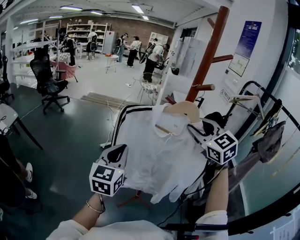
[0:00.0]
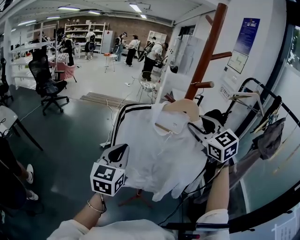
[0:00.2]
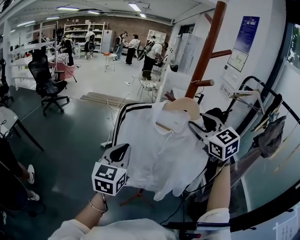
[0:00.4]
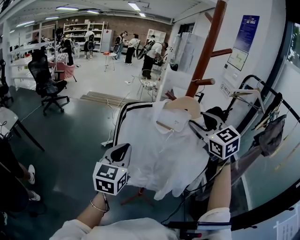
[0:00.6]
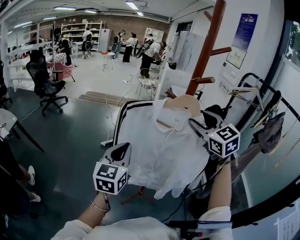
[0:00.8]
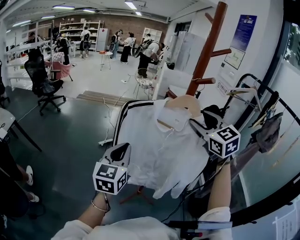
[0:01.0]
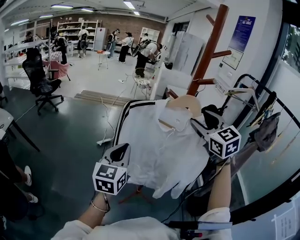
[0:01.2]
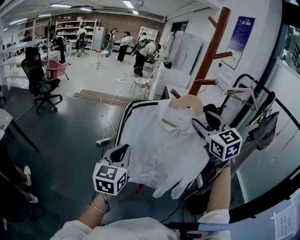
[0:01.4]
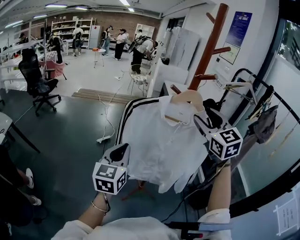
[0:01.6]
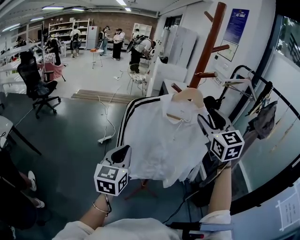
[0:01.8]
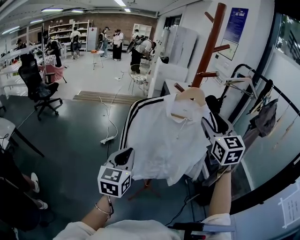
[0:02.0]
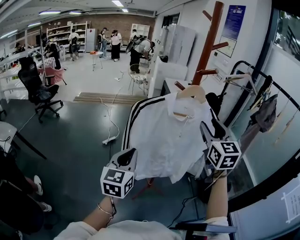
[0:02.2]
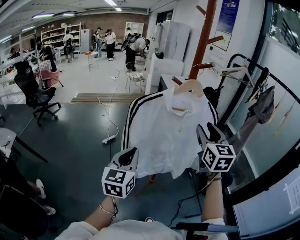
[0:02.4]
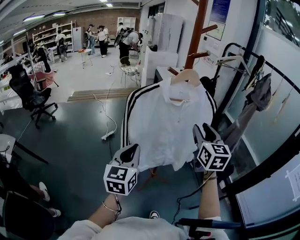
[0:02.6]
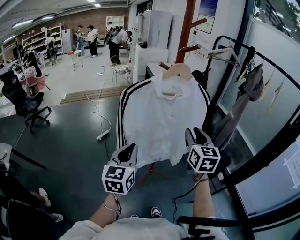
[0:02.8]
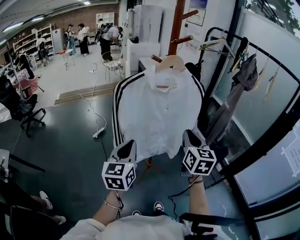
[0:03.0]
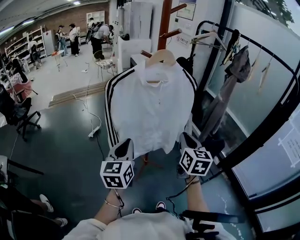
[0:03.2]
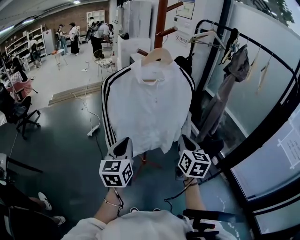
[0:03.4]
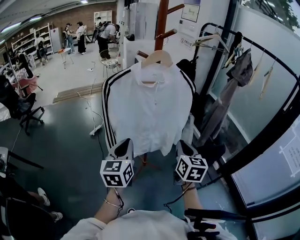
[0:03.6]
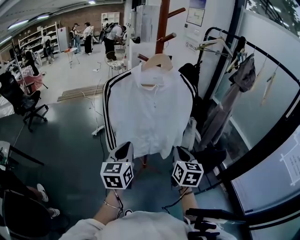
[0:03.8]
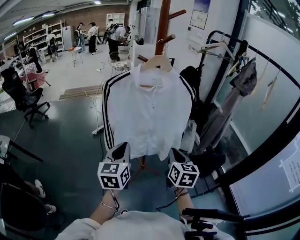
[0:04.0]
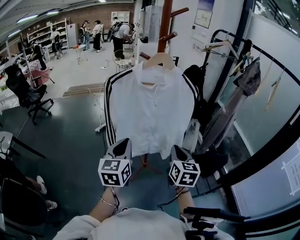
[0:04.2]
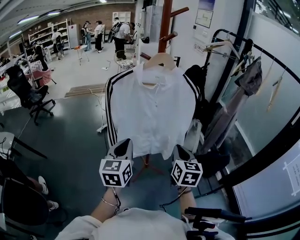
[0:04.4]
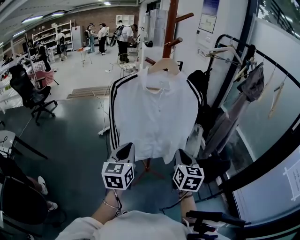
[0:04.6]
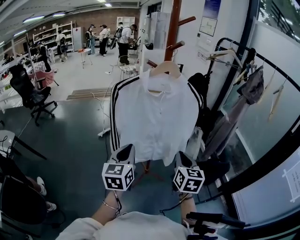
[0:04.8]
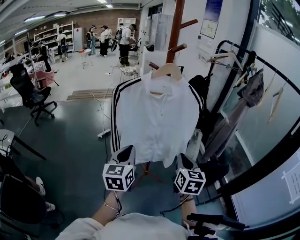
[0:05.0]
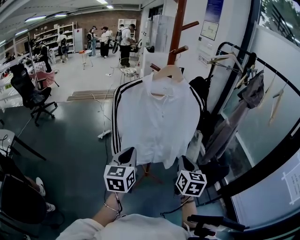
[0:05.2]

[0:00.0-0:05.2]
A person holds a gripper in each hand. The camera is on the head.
0:00.0 to 0:01.8: The right gripper is displaced backward by approximately 5 cm, changes its angle by roughly 30 degrees, and opens up; the left gripper ends up about 5 cm from where it was.
0:01.8 to 0:03.4: The right gripper moves downward and backward, roughly 30 cm, turns by approximately 50 degrees, and closes its fingers; the left gripper is displaced to the right and downward by about 5 cm.
0:03.4 to 0:05.2: The grippers stay close to where they were, moving slightly.

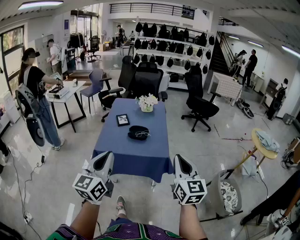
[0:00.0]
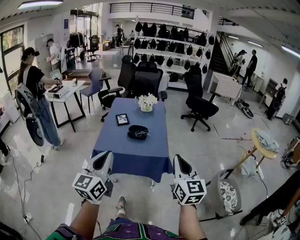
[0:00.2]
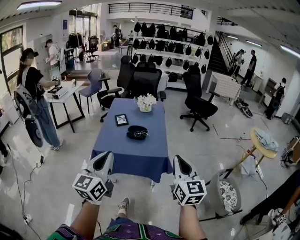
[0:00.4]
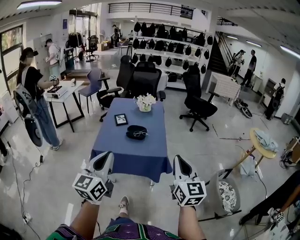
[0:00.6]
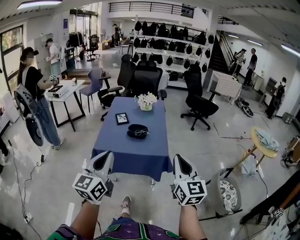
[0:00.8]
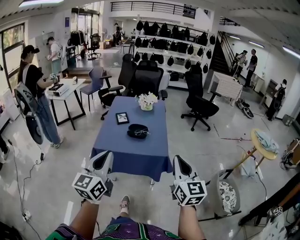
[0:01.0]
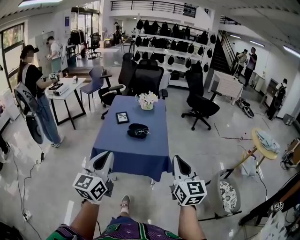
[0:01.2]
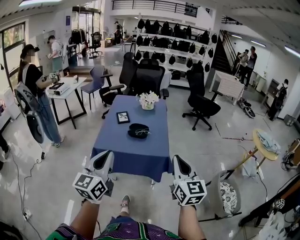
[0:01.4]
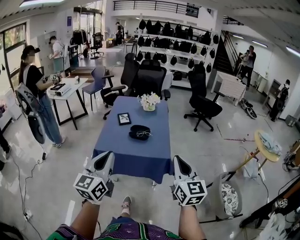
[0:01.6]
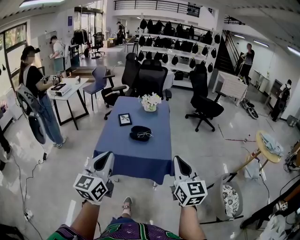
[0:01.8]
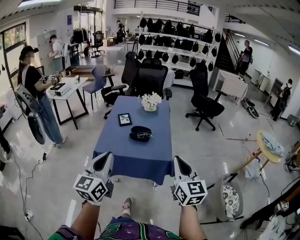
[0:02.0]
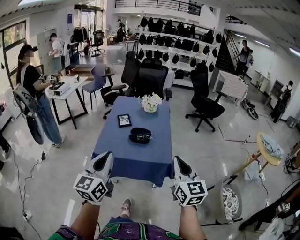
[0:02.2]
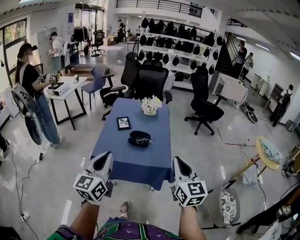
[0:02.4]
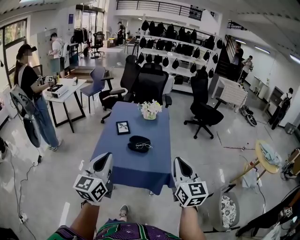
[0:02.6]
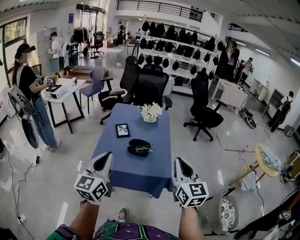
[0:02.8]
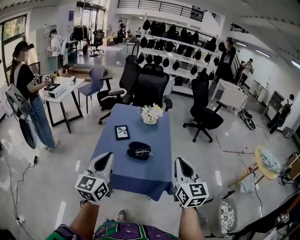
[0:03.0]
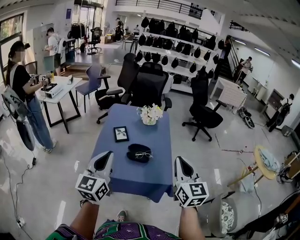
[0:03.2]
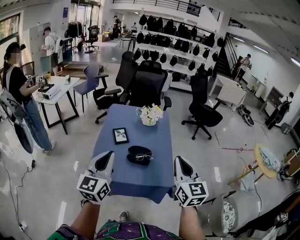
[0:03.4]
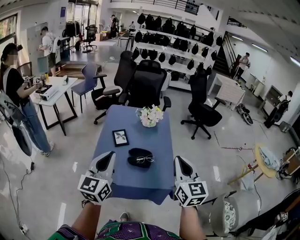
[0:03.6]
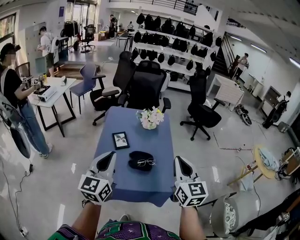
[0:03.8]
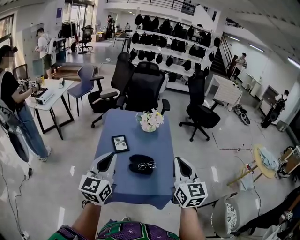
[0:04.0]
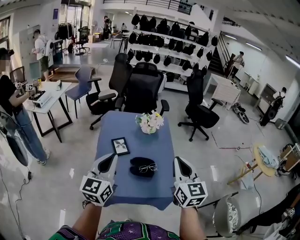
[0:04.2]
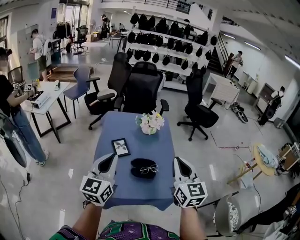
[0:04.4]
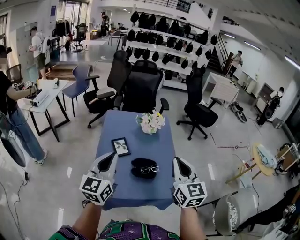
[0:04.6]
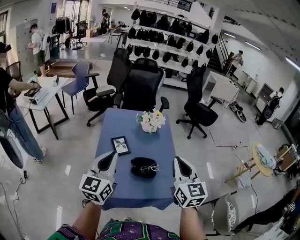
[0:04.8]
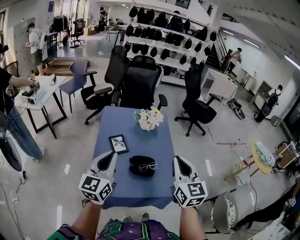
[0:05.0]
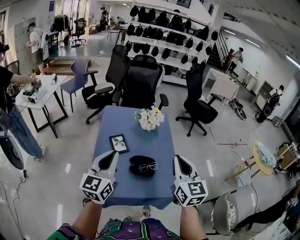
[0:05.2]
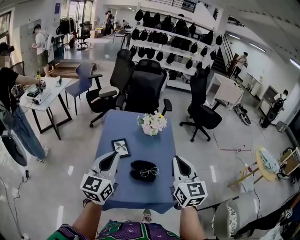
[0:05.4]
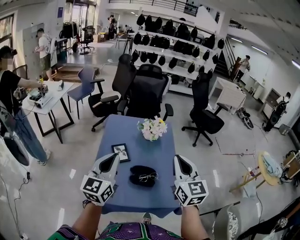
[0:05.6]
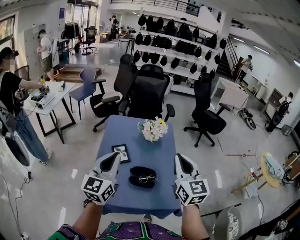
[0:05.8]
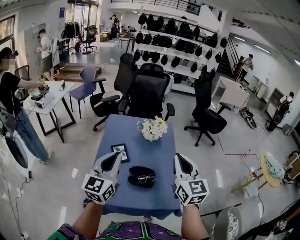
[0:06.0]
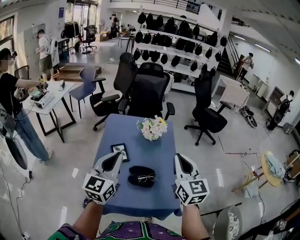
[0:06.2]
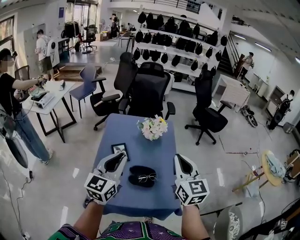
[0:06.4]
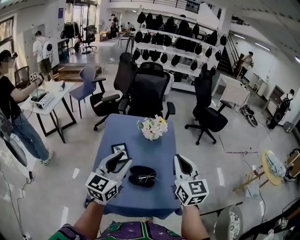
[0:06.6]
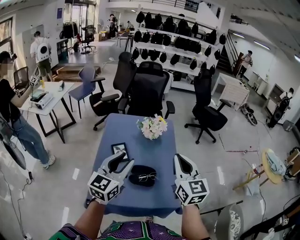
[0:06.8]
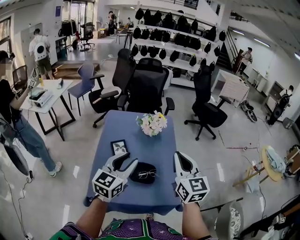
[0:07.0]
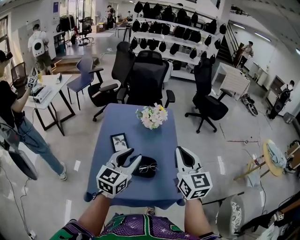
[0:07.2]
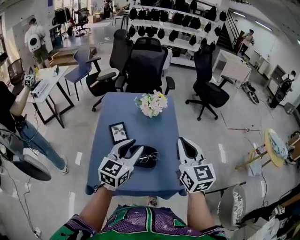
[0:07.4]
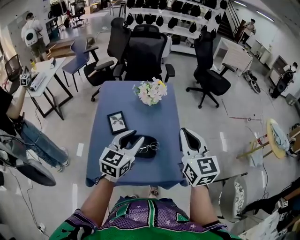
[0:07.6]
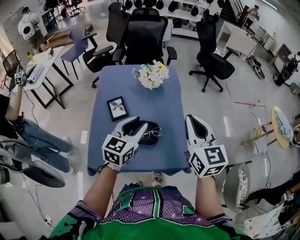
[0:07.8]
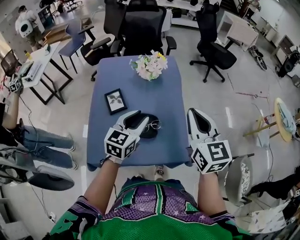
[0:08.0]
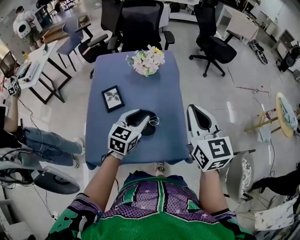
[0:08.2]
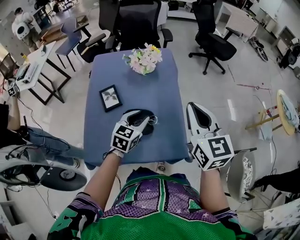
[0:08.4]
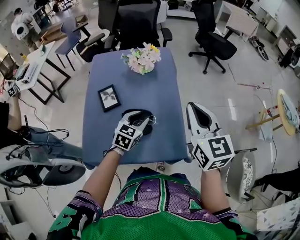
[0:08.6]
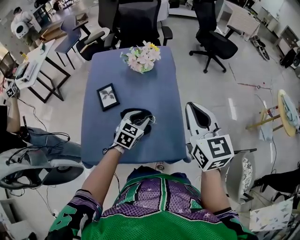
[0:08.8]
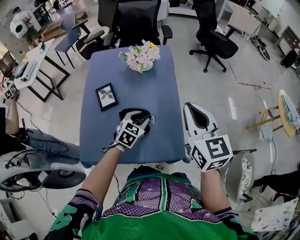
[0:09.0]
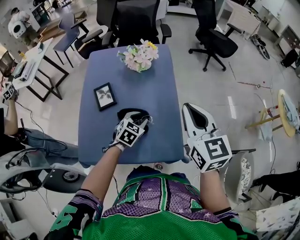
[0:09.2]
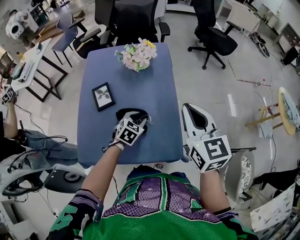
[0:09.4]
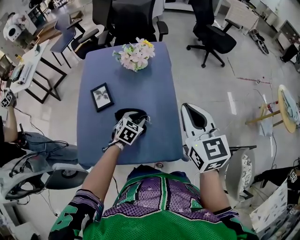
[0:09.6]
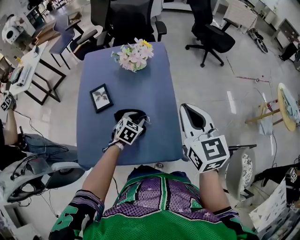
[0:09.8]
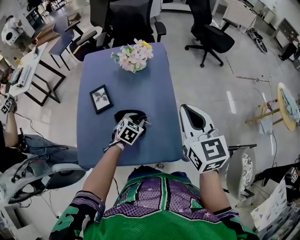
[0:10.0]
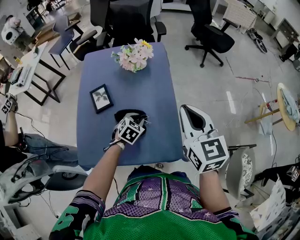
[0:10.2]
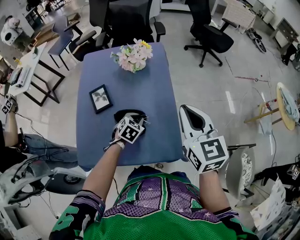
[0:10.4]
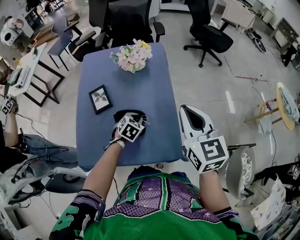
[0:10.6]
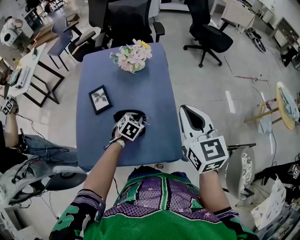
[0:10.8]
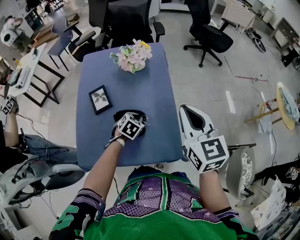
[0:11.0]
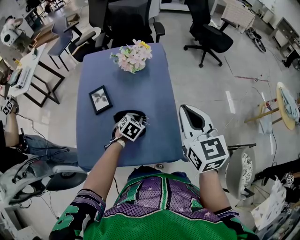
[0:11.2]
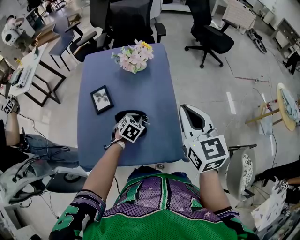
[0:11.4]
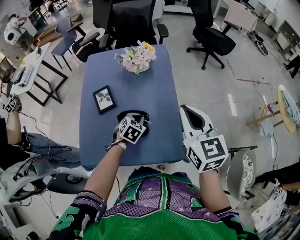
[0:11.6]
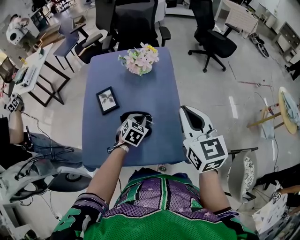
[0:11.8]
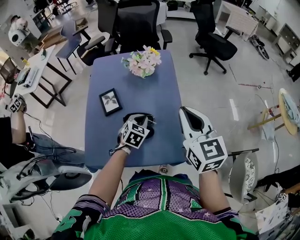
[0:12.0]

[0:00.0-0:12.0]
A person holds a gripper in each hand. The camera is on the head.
0:00.0 to 0:01.6: There are only small adjustments of the grippers.
0:01.6 to 0:03.0: Both grippers move forward, some 15 cm.
0:03.0 to 0:04.4: The right gripper goes about 20 cm forward and to the left, while the left gripper shifts some 20 cm forward.
0:04.4 to 0:06.0: Both grippers travel together forward, about 10 cm.
0:06.0 to 0:07.6: The right gripper heads downward, covering roughly 5 cm. The left gripper travels downward and to the right by some 15 cm, turns by approximately 20 degrees, and opens its fingers.
0:07.6 to 0:09.0: The left gripper is displaced downward by about 20 cm, and turns by approximately 30 degrees. Meanwhile the right gripper is displaced to the right and downward by approximately 10 cm.
0:09.0 to 0:10.4: The left gripper heads downward, covering approximately 5 cm, and closes.
0:10.4 to 0:12.0: The left gripper goes some 5 cm upward.

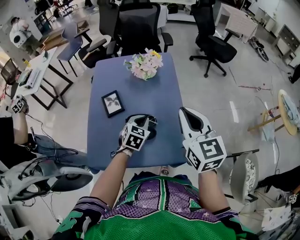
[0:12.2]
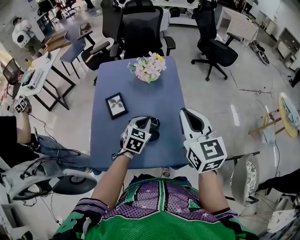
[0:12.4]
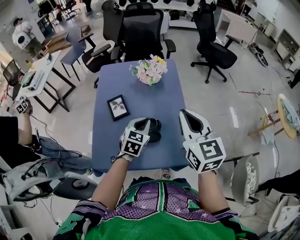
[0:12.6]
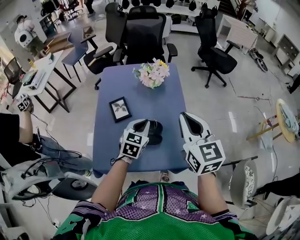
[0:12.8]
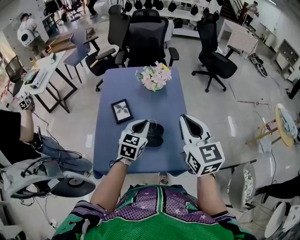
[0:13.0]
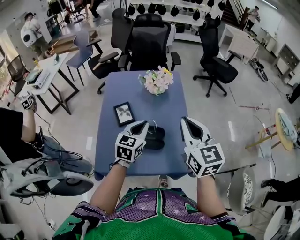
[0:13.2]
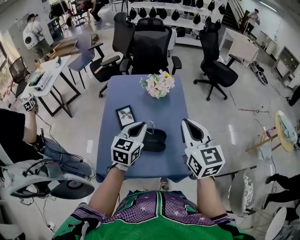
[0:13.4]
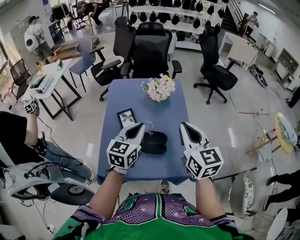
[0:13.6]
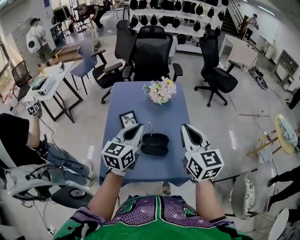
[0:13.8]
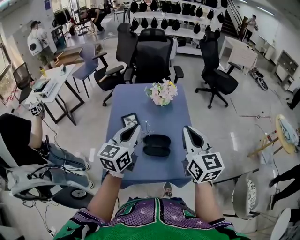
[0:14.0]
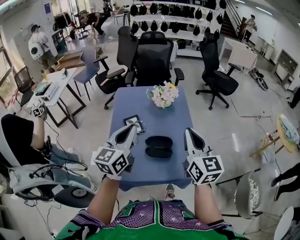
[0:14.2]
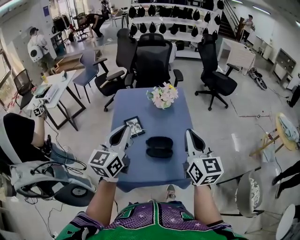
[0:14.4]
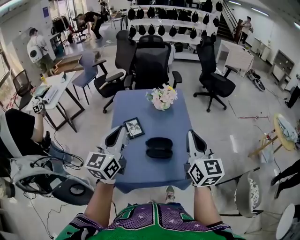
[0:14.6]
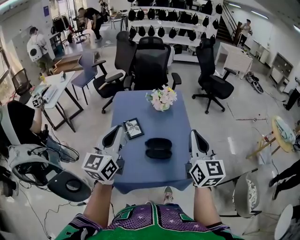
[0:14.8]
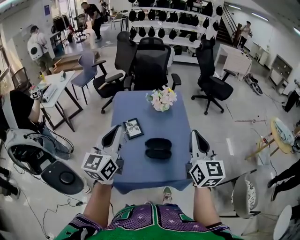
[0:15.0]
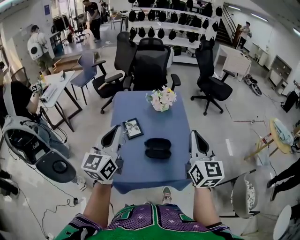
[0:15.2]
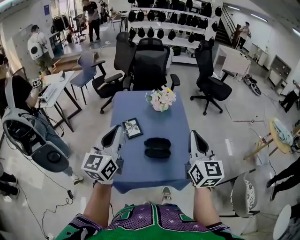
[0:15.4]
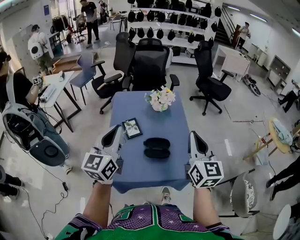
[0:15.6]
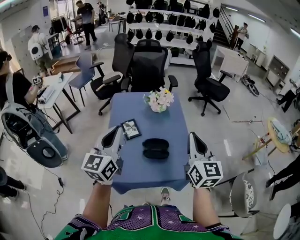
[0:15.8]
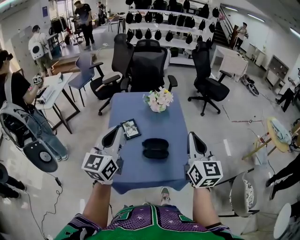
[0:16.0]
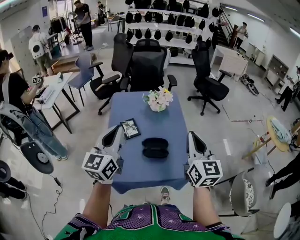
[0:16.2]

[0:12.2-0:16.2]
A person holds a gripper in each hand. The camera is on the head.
0:12.2 to 0:13.6: The left gripper is displaced upward and to the left by roughly 20 cm, and rotates about 30 degrees; the right gripper heads to the left, covering some 5 cm.
0:13.6 to 0:14.8: The left gripper shifts about 20 cm upward, to the left and backward, while the right gripper heads backward, covering roughly 5 cm.
0:14.8 to 0:16.2: There are only small adjustments of the grippers.

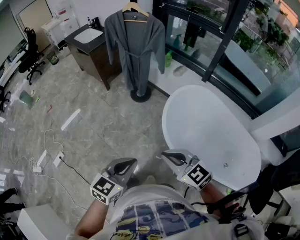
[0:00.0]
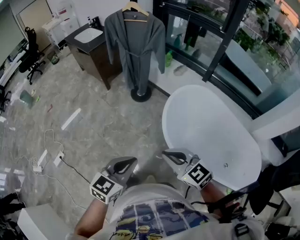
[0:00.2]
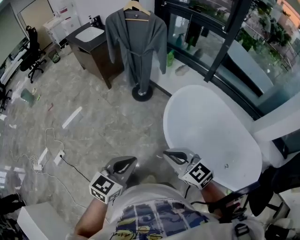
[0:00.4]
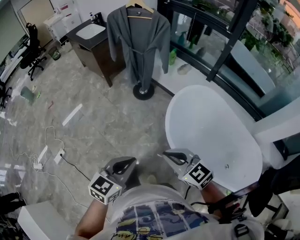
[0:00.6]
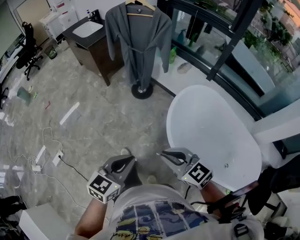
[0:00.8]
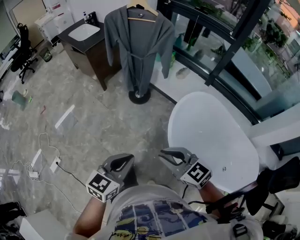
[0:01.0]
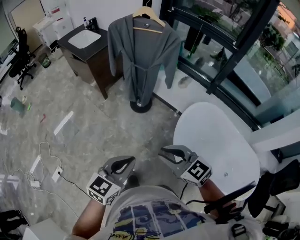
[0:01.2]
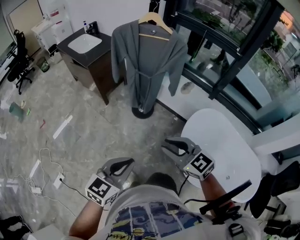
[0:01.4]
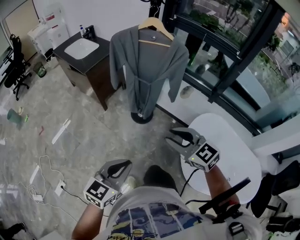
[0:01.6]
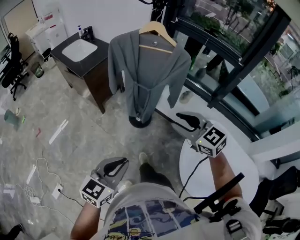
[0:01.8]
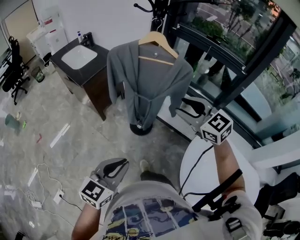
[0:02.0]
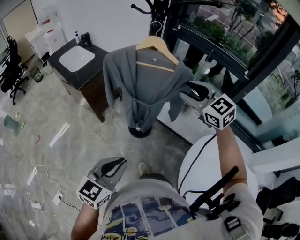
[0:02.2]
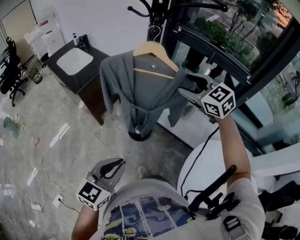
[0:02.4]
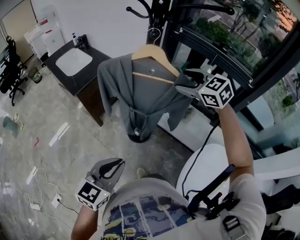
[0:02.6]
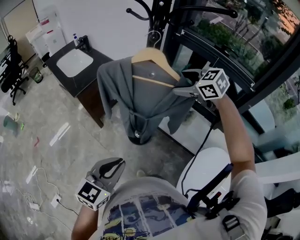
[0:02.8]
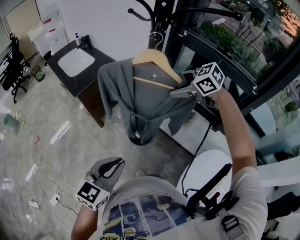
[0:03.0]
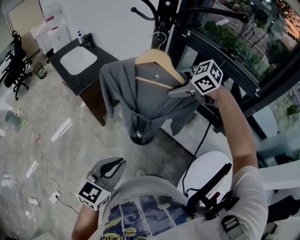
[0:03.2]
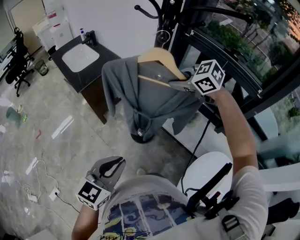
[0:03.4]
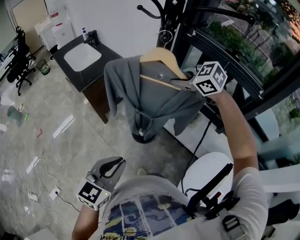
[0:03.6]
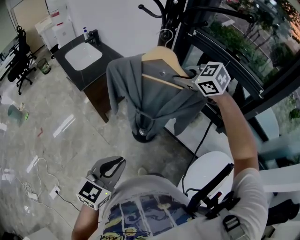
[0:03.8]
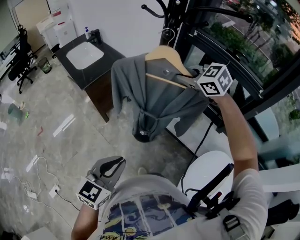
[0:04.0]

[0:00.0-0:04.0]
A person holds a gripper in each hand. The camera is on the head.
0:00.0 to 0:01.4: The left gripper travels forward and to the left by some 25 cm, while the right gripper travels forward by roughly 30 cm.
0:01.4 to 0:02.6: The left gripper travels forward by approximately 30 cm, while the right gripper goes approximately 50 cm forward, and opens.
0:02.6 to 0:04.0: The right gripper moves some 5 cm, and closes its fingers.
